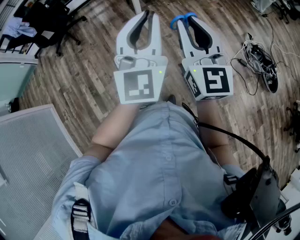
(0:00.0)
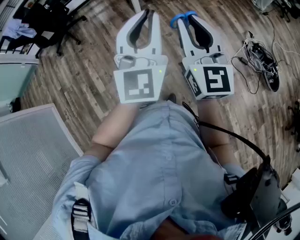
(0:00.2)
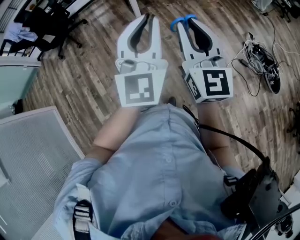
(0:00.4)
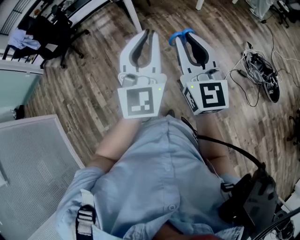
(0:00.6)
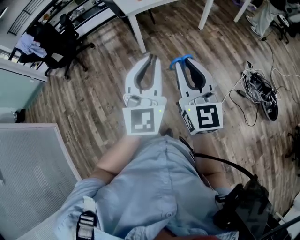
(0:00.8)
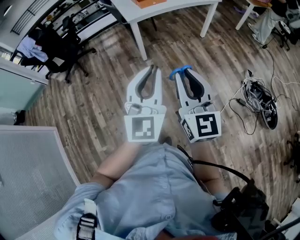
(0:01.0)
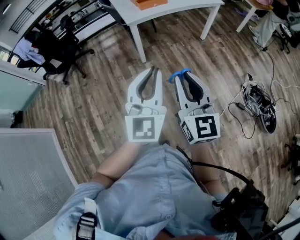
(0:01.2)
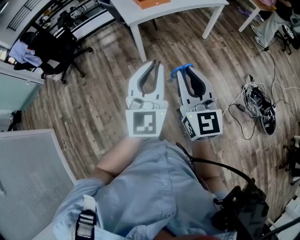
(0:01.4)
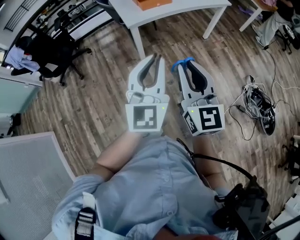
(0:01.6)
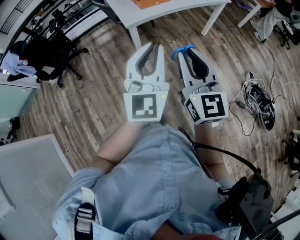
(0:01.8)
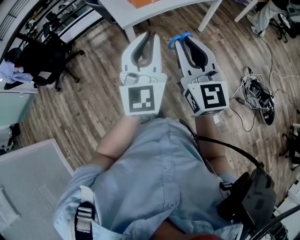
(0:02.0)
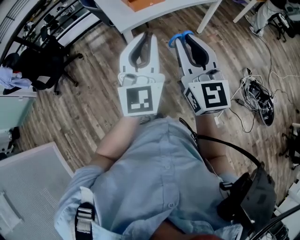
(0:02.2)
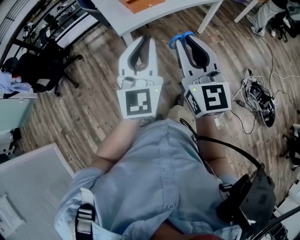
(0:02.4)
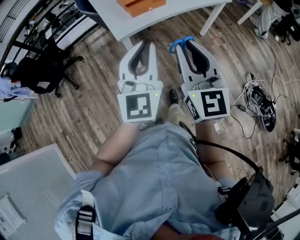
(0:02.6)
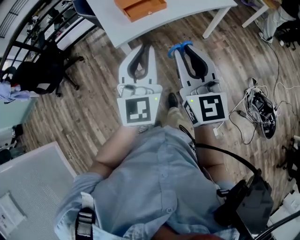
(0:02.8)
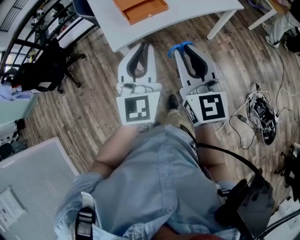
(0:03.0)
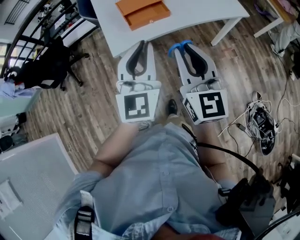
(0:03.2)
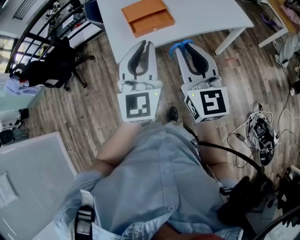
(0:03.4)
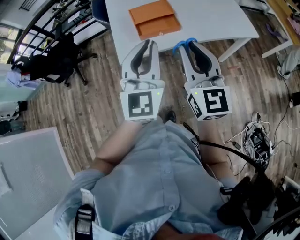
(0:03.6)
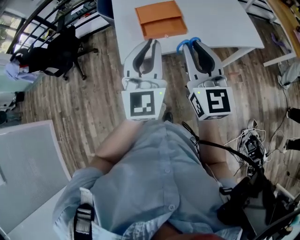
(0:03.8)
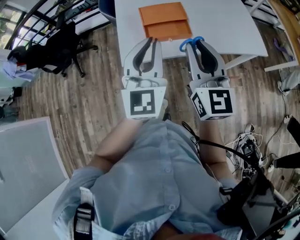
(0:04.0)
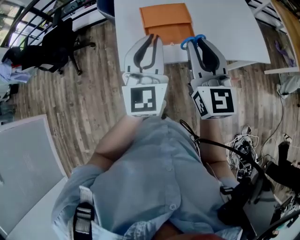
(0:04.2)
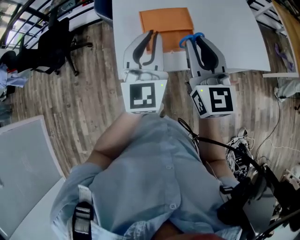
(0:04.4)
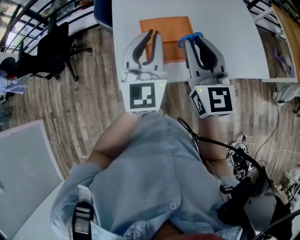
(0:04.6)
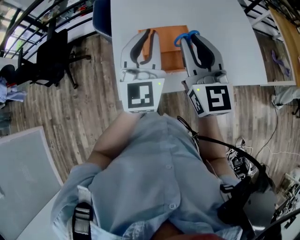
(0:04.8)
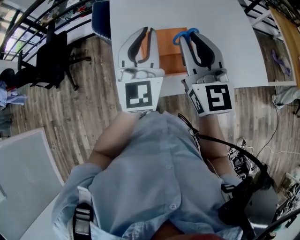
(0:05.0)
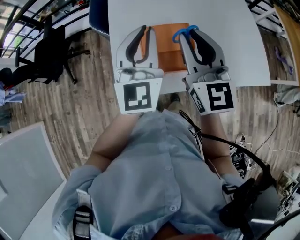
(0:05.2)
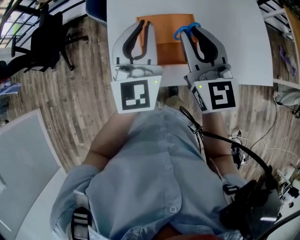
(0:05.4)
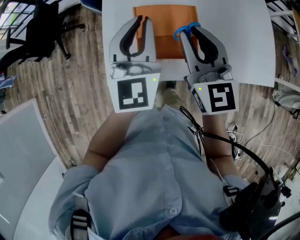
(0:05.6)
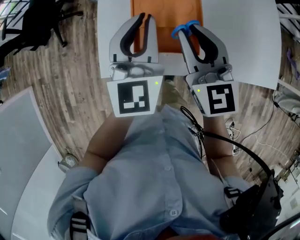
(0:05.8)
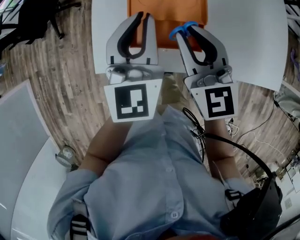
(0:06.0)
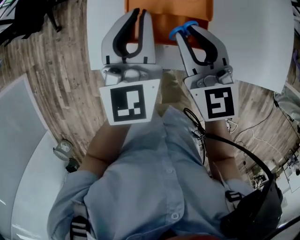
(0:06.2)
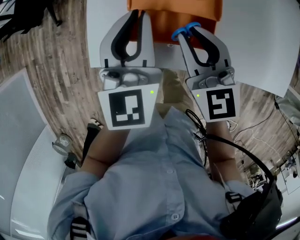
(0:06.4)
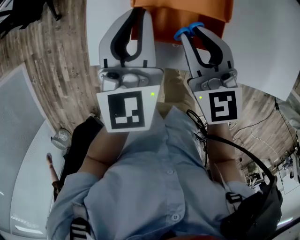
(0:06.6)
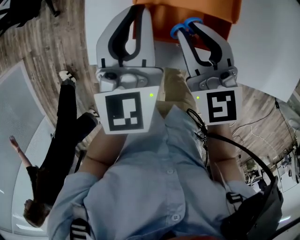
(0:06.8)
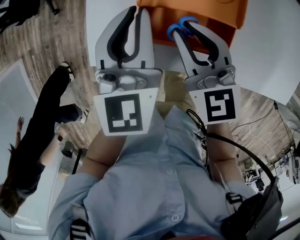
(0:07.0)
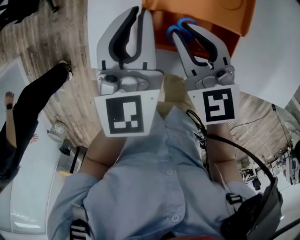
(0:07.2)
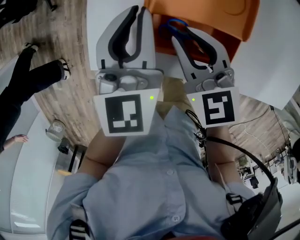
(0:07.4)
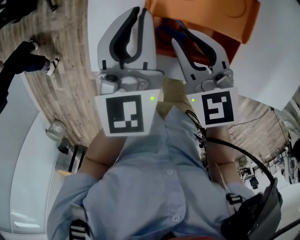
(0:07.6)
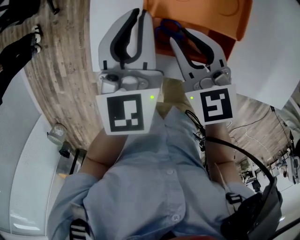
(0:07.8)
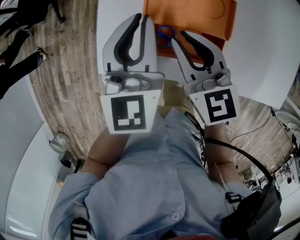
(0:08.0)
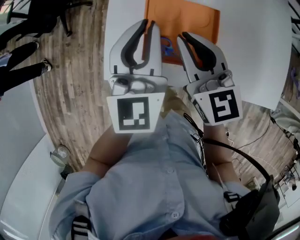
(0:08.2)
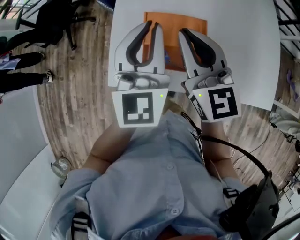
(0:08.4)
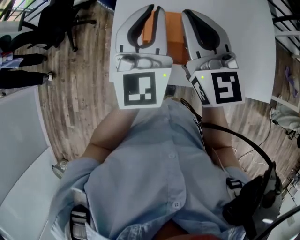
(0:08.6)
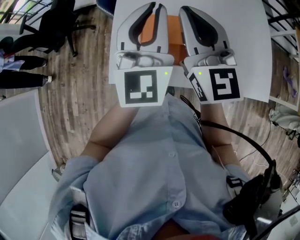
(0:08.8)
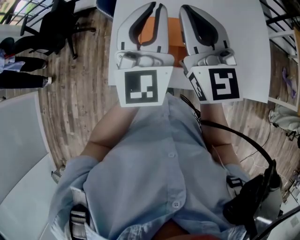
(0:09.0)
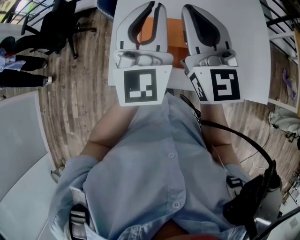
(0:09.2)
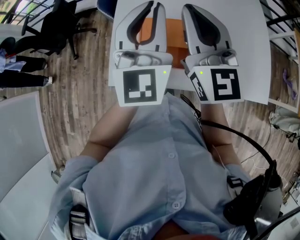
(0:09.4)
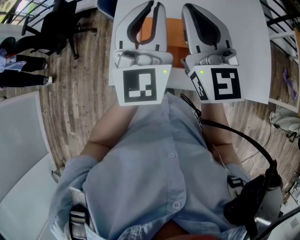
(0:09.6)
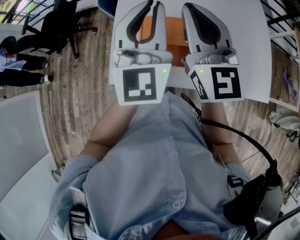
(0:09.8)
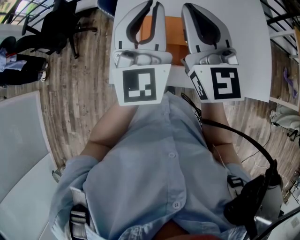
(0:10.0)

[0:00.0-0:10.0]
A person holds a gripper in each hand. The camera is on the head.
0:00.0 to 0:01.4: The left gripper heads forward and to the right, covering about 20 cm. Meanwhile the right gripper shifts about 15 cm forward.
0:01.4 to 0:02.8: The two grippers go approximately 30 cm forward.
0:02.8 to 0:04.2: The grippers both shift forward by about 25 cm.
0:04.2 to 0:05.8: The left gripper shifts roughly 20 cm forward. Meanwhile the right gripper shifts some 20 cm forward and downward, and turns by about 20 degrees.
0:05.8 to 0:07.2: Both grippers move downward, approximately 10 cm. The right gripper rotates roughly 20 degrees.
0:07.2 to 0:08.6: Both grippers move upward, approximately 20 cm. The right gripper changes its angle by about 30 degrees; the left gripper changes its angle by about 30 degrees.
0:08.6 to 0:10.0: The grippers move only a little.

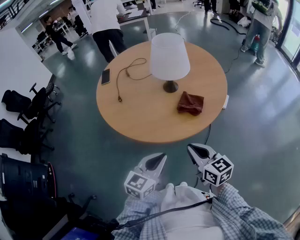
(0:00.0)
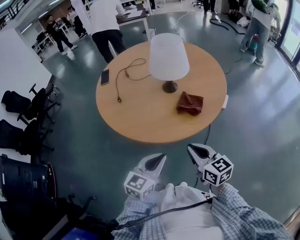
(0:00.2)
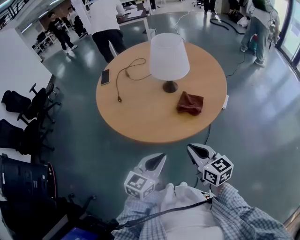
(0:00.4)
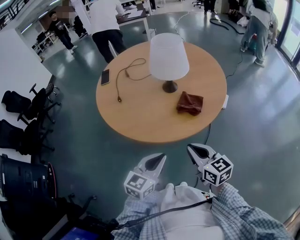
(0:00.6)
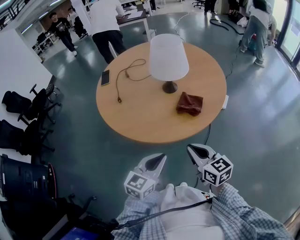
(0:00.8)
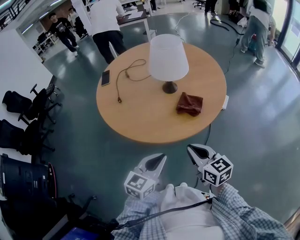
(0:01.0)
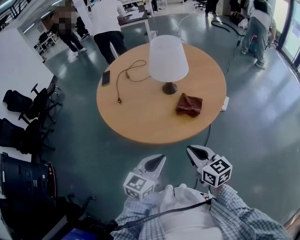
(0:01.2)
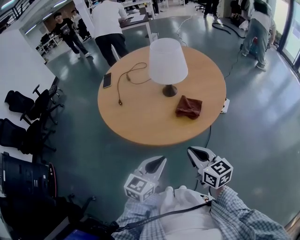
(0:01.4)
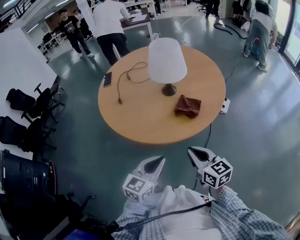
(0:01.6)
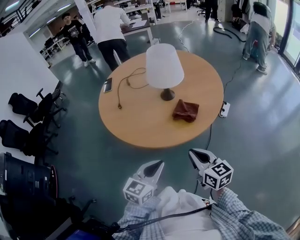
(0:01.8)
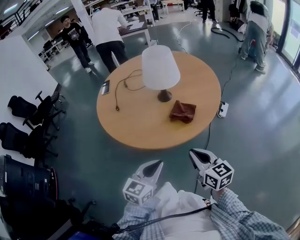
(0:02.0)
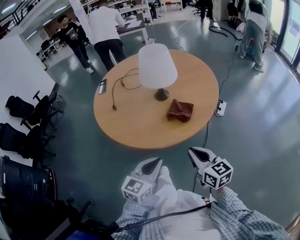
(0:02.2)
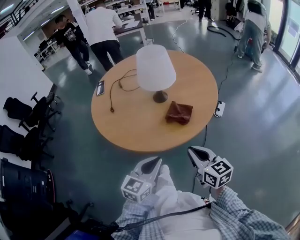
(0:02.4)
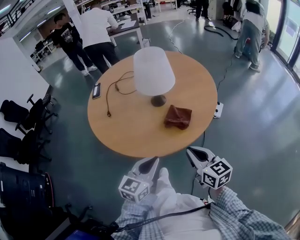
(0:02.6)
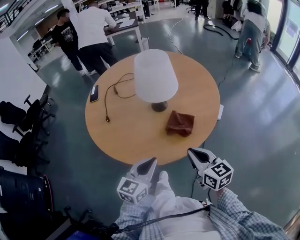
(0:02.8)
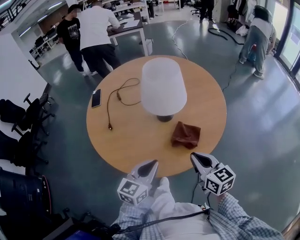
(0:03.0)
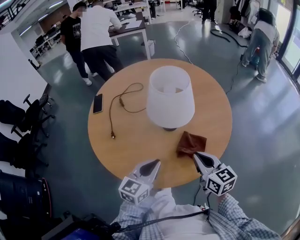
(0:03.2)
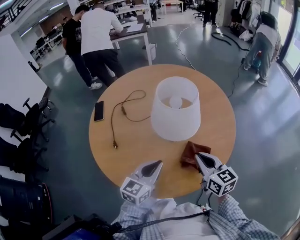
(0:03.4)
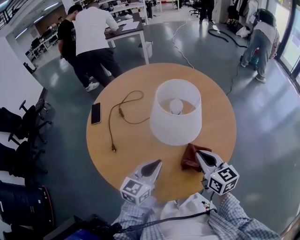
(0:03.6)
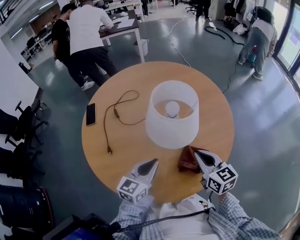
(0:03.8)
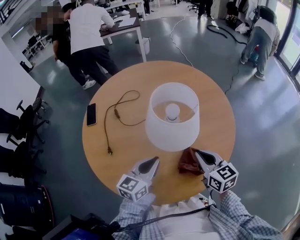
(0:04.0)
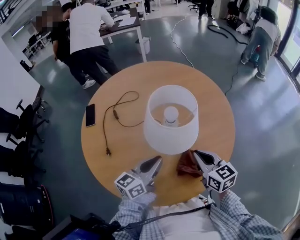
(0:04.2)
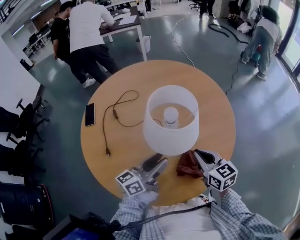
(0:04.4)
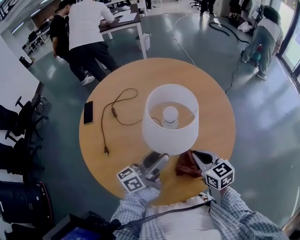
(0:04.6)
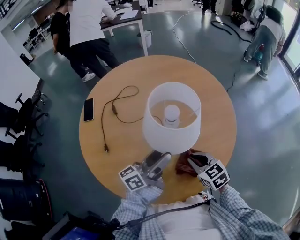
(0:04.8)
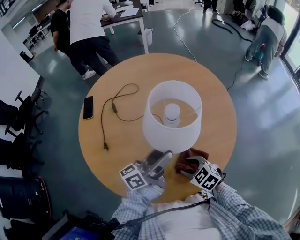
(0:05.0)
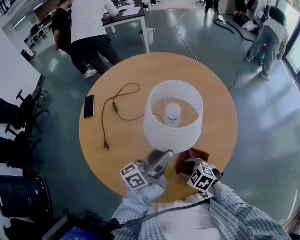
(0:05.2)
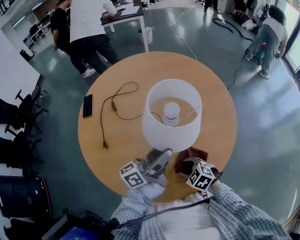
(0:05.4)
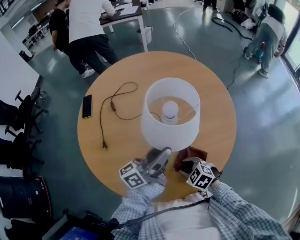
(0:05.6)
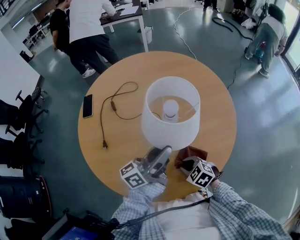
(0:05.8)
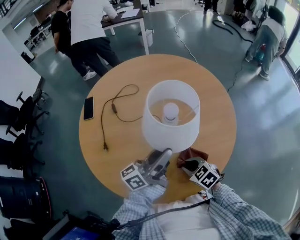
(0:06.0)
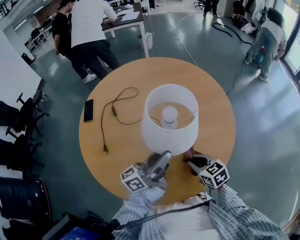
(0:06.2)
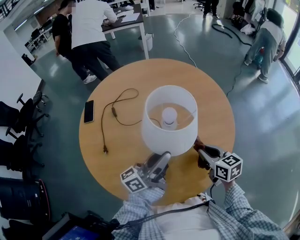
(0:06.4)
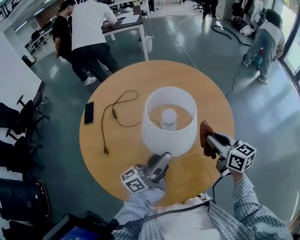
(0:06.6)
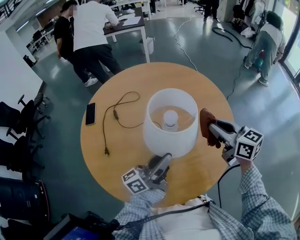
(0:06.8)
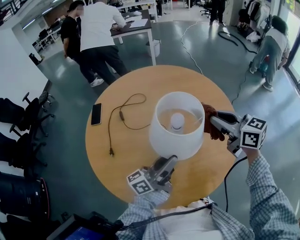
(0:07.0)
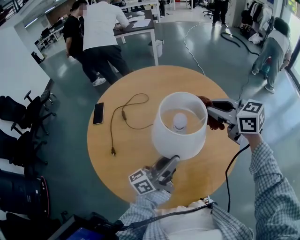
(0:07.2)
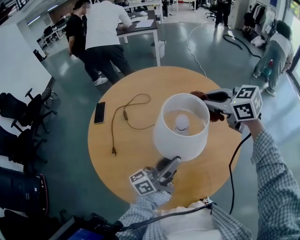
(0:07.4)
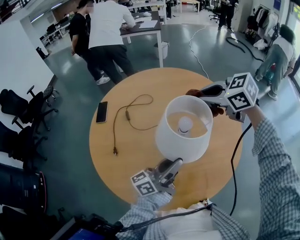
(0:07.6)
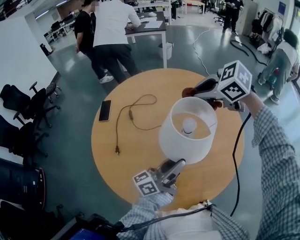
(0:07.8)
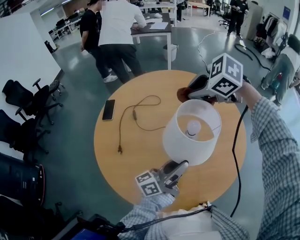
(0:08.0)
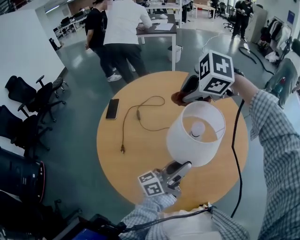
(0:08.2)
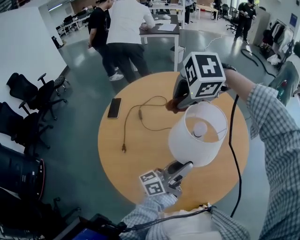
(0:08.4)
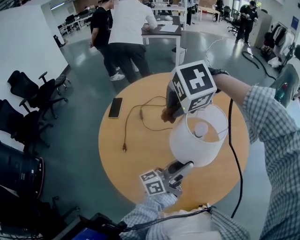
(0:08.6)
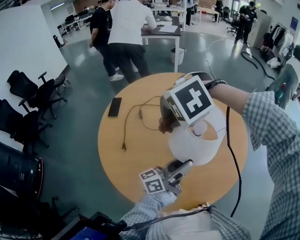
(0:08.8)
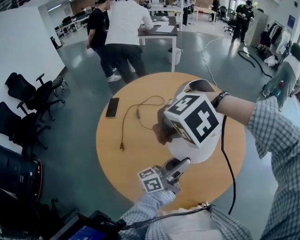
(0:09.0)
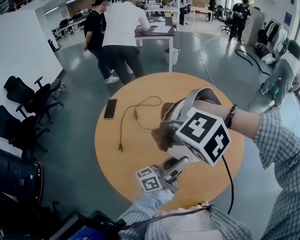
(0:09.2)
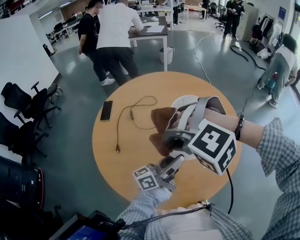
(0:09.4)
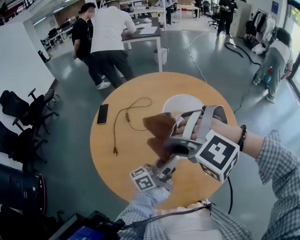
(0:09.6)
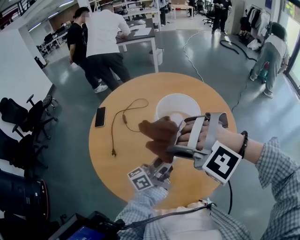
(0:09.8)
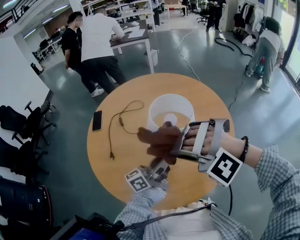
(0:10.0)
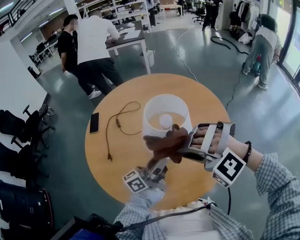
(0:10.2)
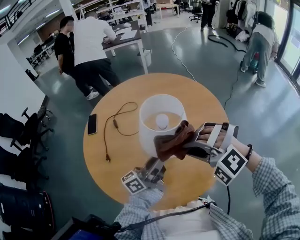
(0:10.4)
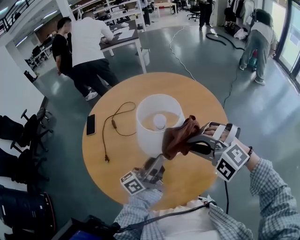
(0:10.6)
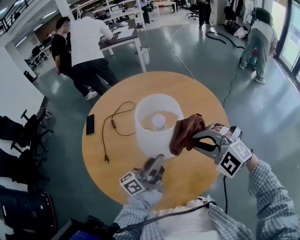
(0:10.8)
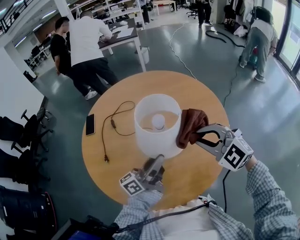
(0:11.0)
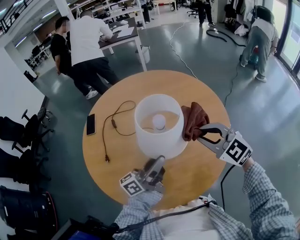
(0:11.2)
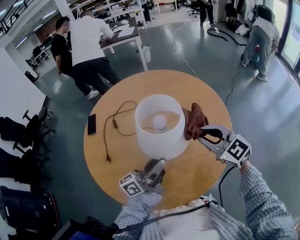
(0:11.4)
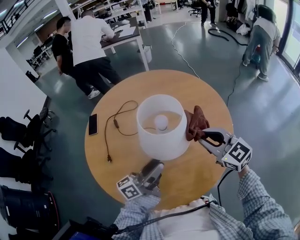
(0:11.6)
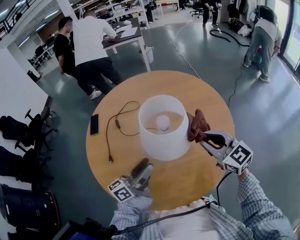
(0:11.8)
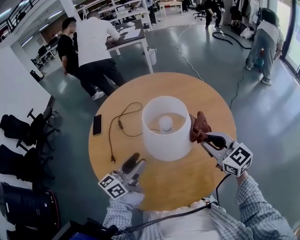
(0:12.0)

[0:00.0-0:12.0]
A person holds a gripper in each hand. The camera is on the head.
0:00.0 to 0:01.6: There are only small adjustments of the grippers.
0:01.6 to 0:03.0: Both grippers move forward, roughly 15 cm.
0:03.0 to 0:04.4: Both grippers move forward, about 15 cm. The left gripper changes its angle by approximately 40 degrees, and opens up.
0:04.4 to 0:06.0: The left gripper moves some 5 cm. Meanwhile the right gripper travels downward and backward by approximately 15 cm, rotates some 40 degrees, and opens and closes again.
0:06.0 to 0:07.6: The right gripper moves upward and forward, some 40 cm, and rotates about 20 degrees.
0:07.6 to 0:09.0: The right gripper moves approximately 20 cm, and rotates around the line of its fingers by roughly 70 degrees, counterclockwise from behind.
0:09.0 to 0:10.4: The right gripper changes place by approximately 15 cm, and points its fingers roughly 40 degrees further upward.
0:10.4 to 0:12.0: The left gripper moves to the left, approximately 10 cm, and turns by some 30 degrees. Meanwhile the right gripper heads to the right and forward, covering approximately 10 cm, and rolls clockwise, seen from behind, by about 80 degrees.

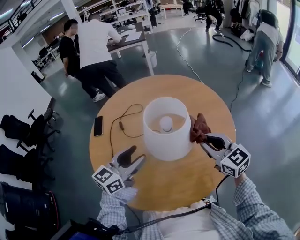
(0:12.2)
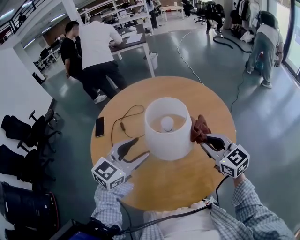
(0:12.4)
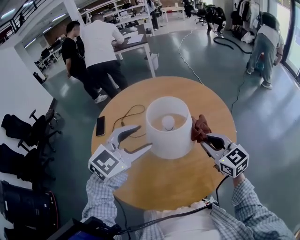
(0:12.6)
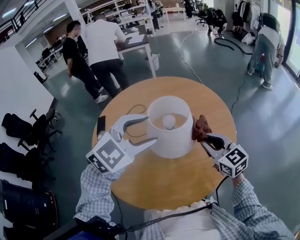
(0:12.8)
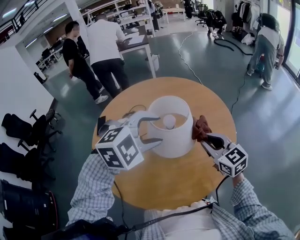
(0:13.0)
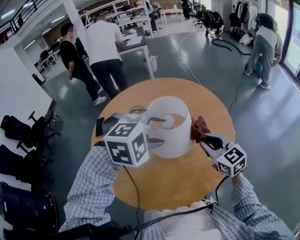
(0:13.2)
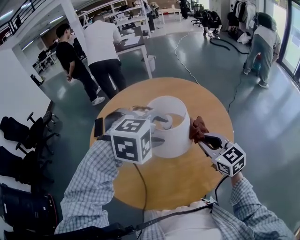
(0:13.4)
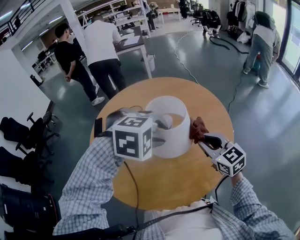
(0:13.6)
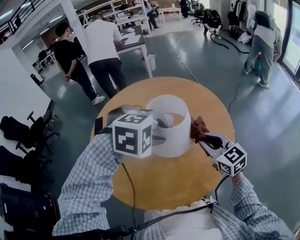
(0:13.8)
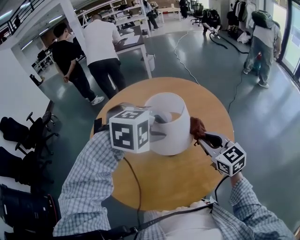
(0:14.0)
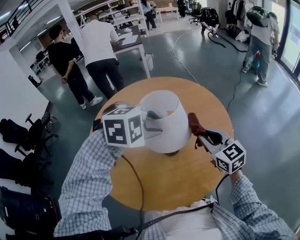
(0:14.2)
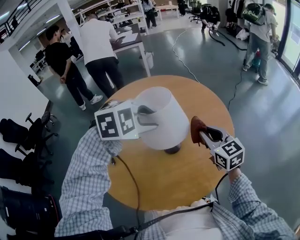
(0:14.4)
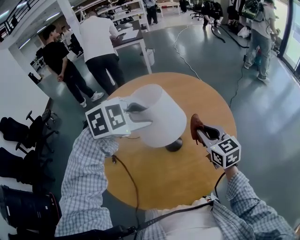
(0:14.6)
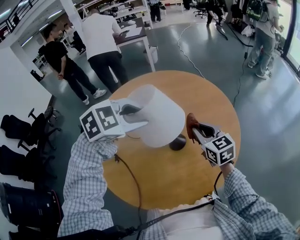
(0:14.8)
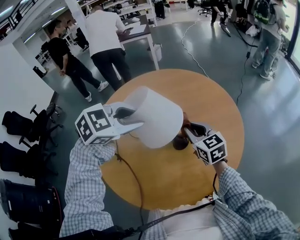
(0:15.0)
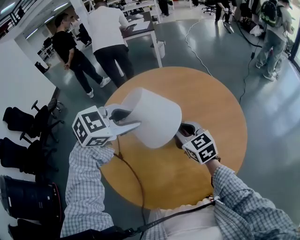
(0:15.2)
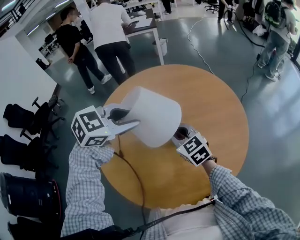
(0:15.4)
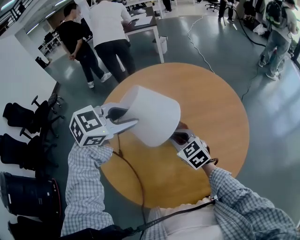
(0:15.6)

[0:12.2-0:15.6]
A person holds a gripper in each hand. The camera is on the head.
0:12.2 to 0:13.8: The left gripper is displaced to the right and upward by approximately 10 cm, and tips its fingers downward by approximately 60 degrees.
0:13.8 to 0:15.6: The right gripper shifts roughly 20 cm to the left and downward; the left gripper travels to the left by some 15 cm, and twists some 40 degrees counterclockwise, seen from behind.
